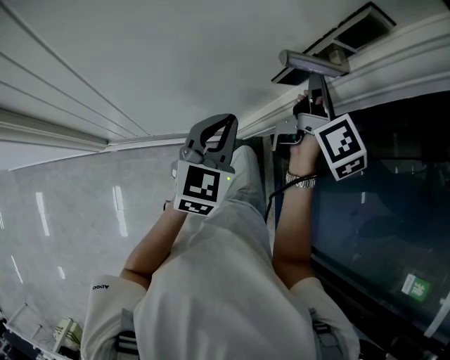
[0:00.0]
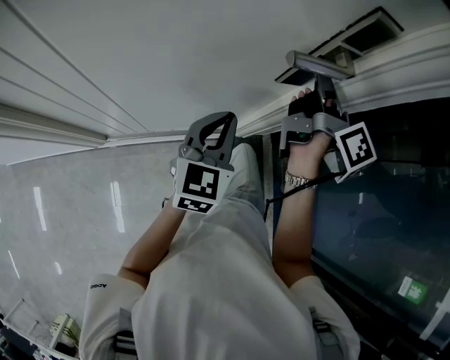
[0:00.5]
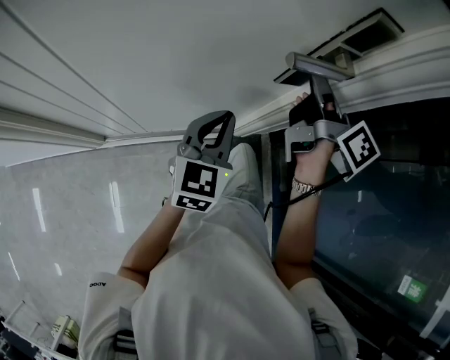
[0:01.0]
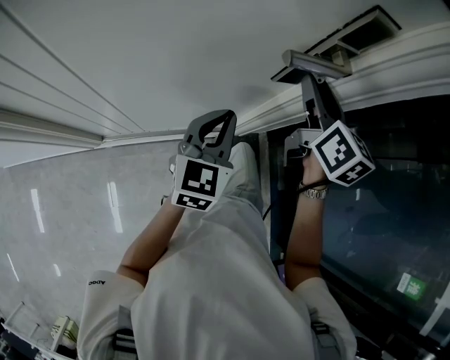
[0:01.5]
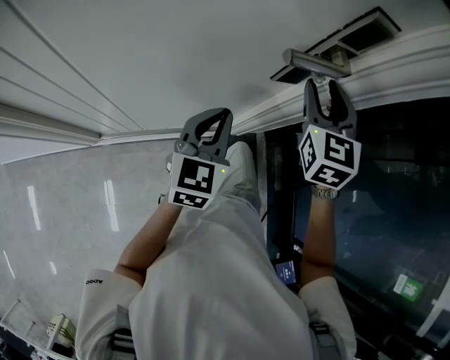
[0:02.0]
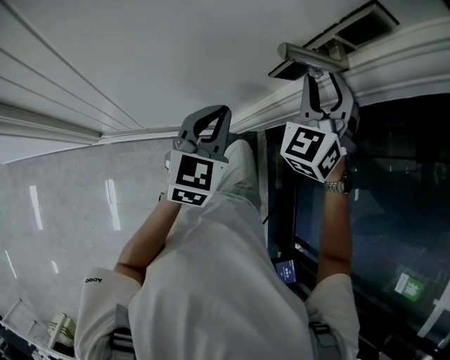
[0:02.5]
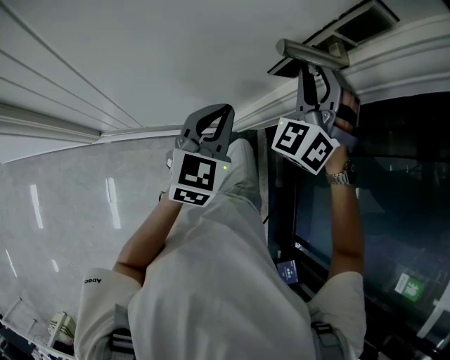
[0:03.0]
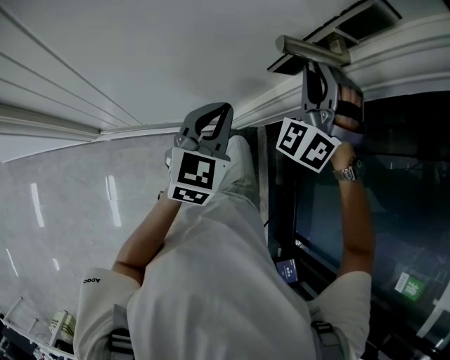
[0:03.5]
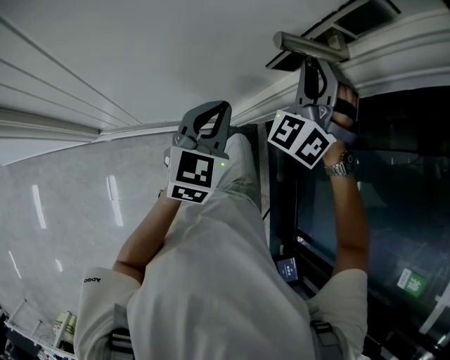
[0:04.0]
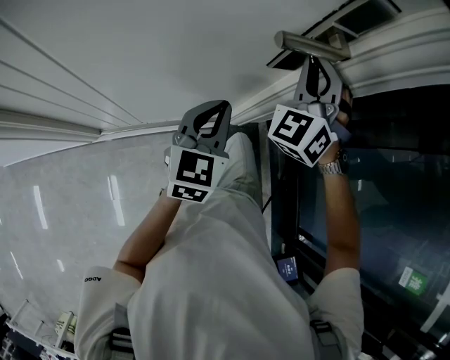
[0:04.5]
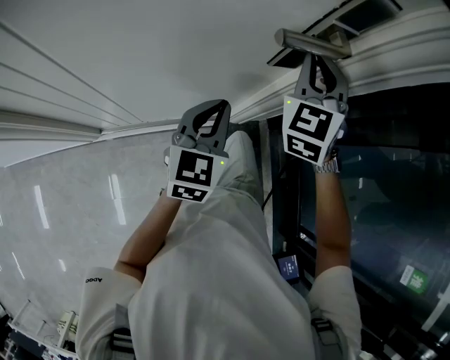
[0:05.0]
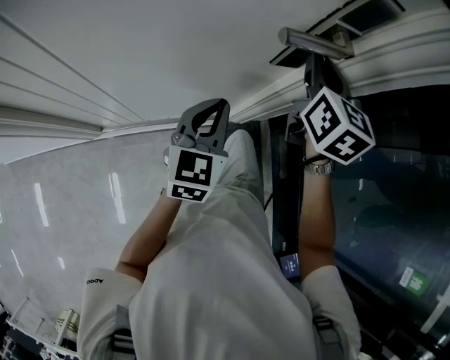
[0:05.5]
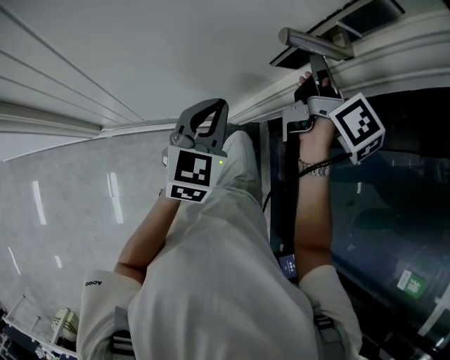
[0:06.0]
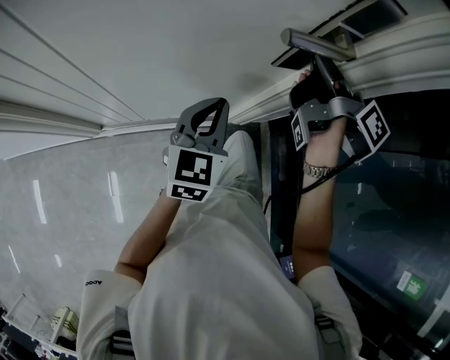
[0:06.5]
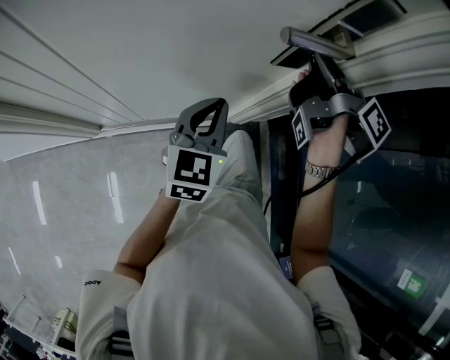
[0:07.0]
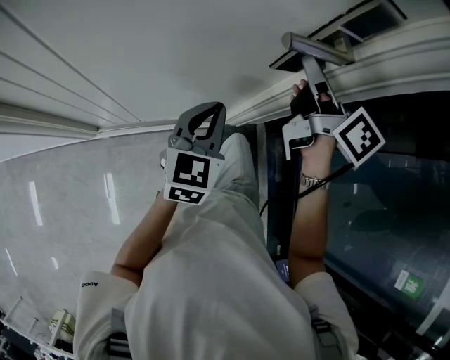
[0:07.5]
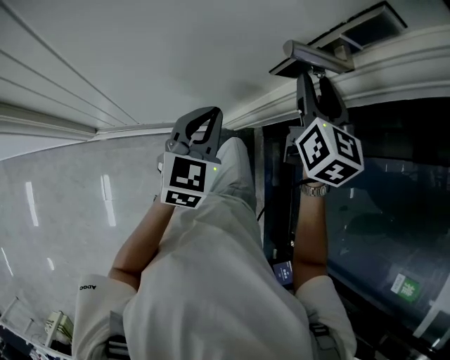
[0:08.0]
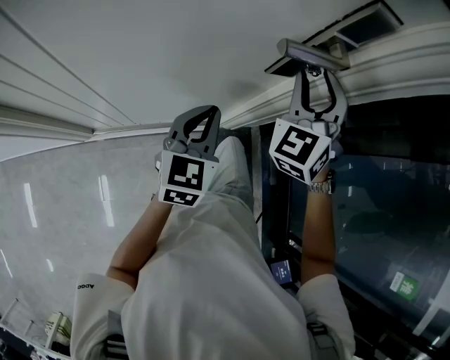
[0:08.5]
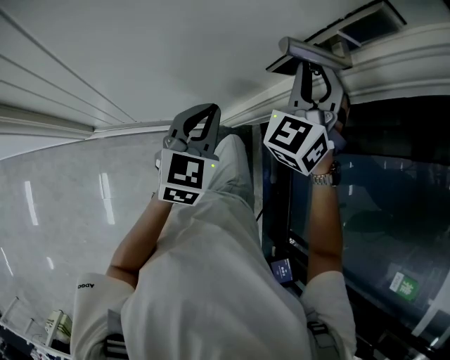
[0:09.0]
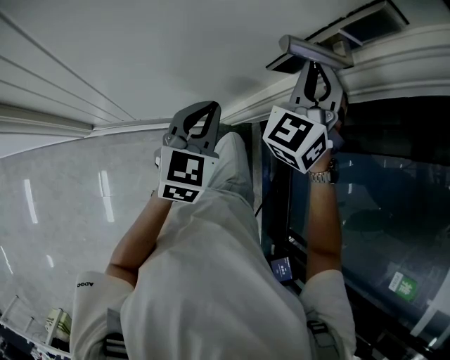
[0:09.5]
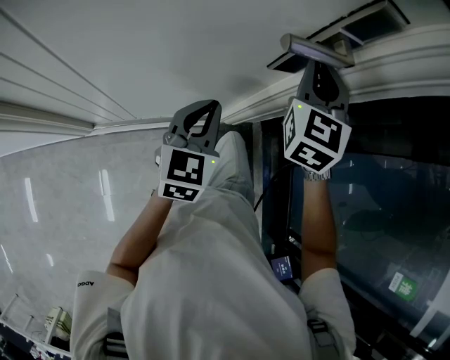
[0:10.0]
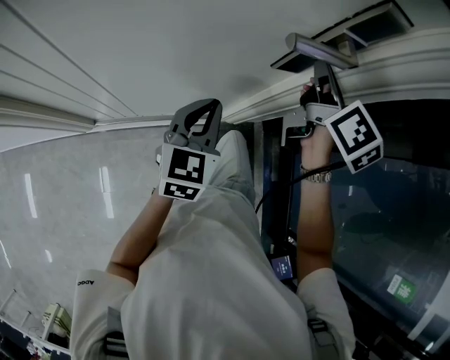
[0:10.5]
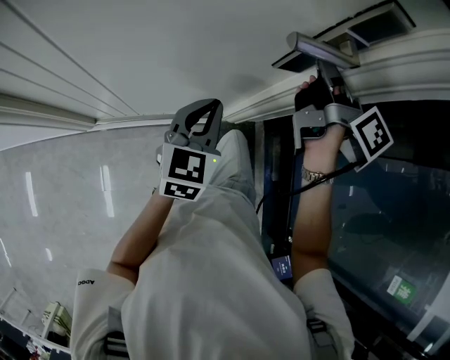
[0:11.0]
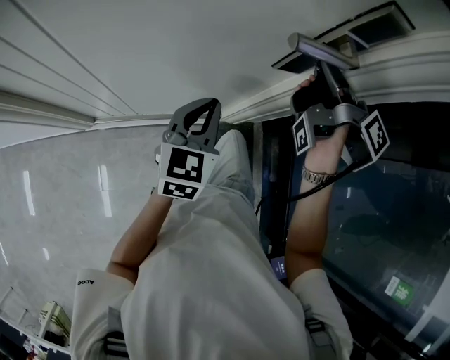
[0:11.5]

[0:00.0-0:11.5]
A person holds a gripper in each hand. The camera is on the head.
0:00.0 to 0:02.0: The right gripper twists some 60 degrees counterclockwise, seen from behind, and opens its fingers.
0:02.0 to 0:04.0: The right gripper rolls counterclockwise, seen from behind, by roughly 60 degrees.
0:04.0 to 0:06.0: The right gripper rotates around the line of its fingers by some 120 degrees, clockwise from behind.
0:06.0 to 0:07.5: The right gripper opens.
0:07.5 to 0:09.5: The right gripper rolls counterclockwise, seen from behind, by some 100 degrees, and closes its fingers.
0:09.5 to 0:11.5: The right gripper rotates around the line of its fingers by some 130 degrees, clockwise from behind.

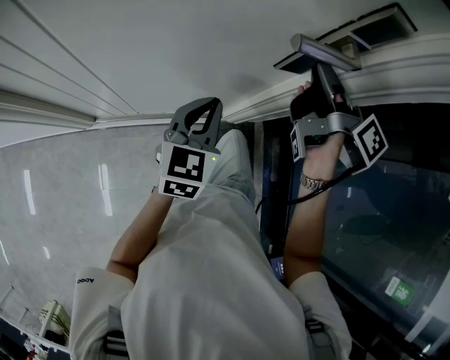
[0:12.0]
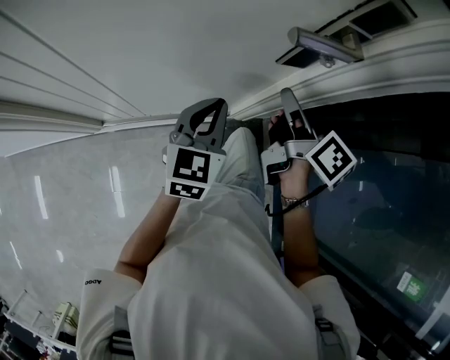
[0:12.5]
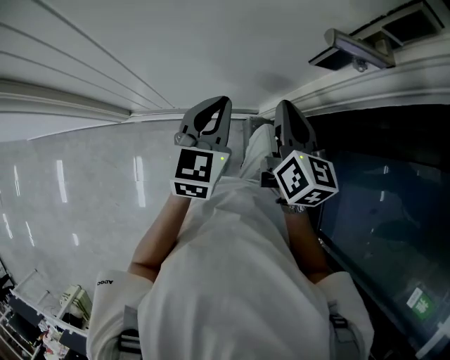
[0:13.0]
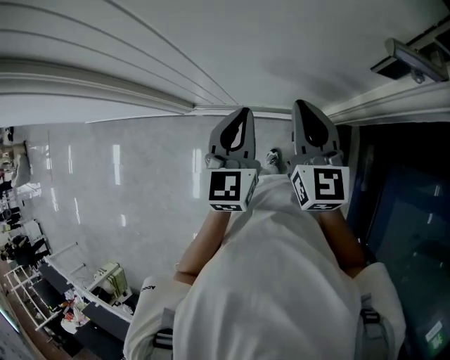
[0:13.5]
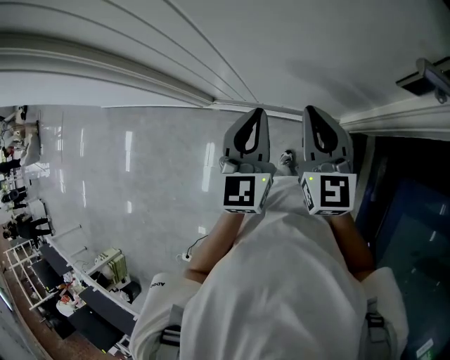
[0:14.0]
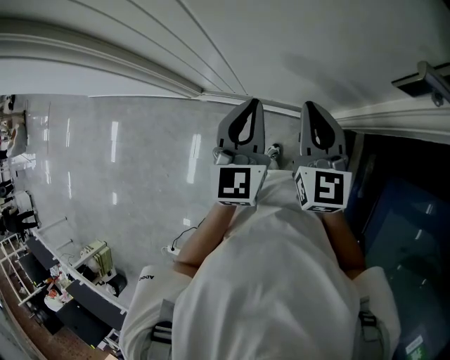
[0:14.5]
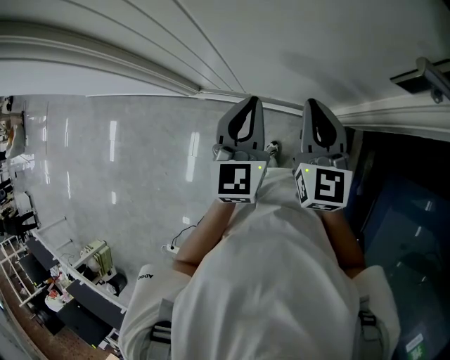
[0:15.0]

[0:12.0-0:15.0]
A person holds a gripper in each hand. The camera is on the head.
0:12.0 to 0:13.5: The left gripper is displaced to the left by some 15 cm, and changes its angle by about 20 degrees. The right gripper shifts about 25 cm to the left, backward and downward, and rolls counterclockwise, seen from behind, by some 60 degrees.
0:13.5 to 0:15.0: There are only small adjustments of the grippers.

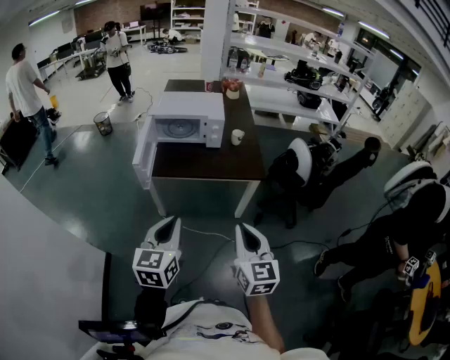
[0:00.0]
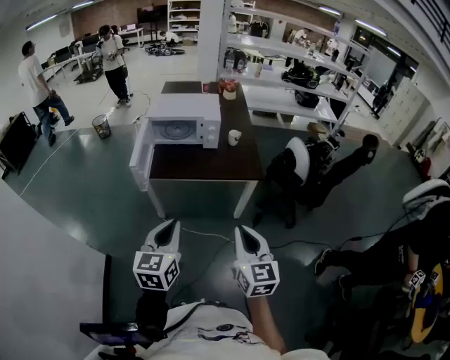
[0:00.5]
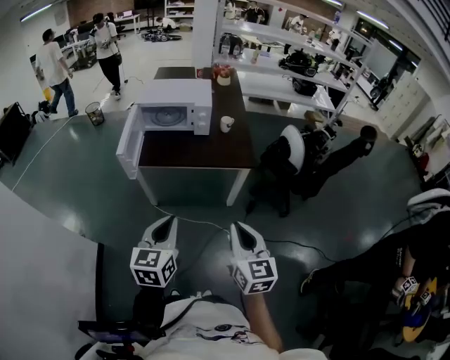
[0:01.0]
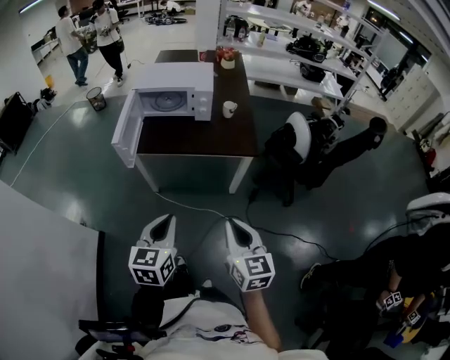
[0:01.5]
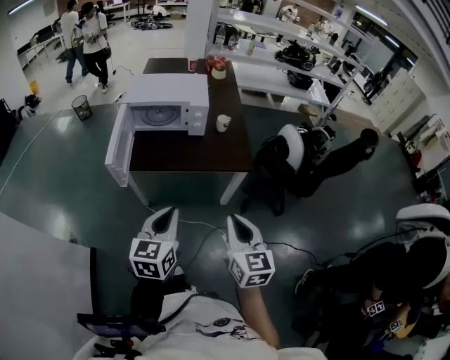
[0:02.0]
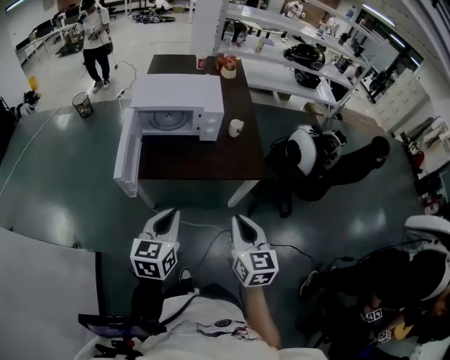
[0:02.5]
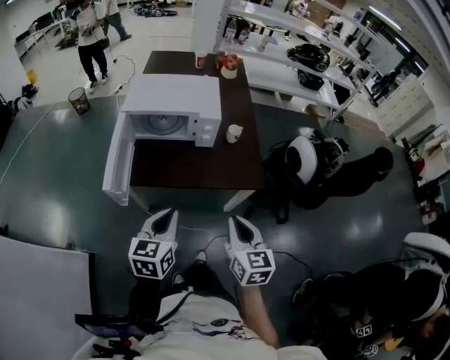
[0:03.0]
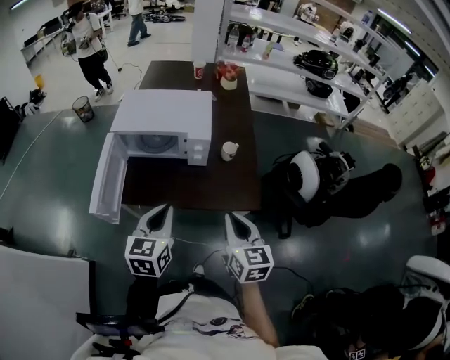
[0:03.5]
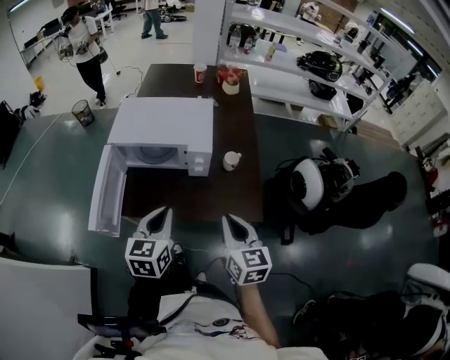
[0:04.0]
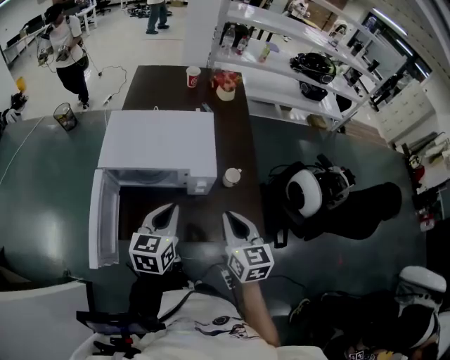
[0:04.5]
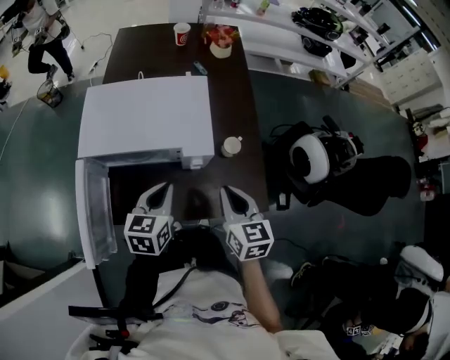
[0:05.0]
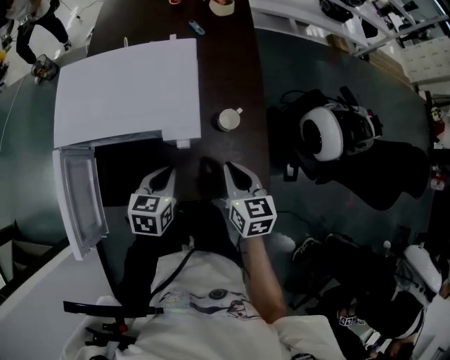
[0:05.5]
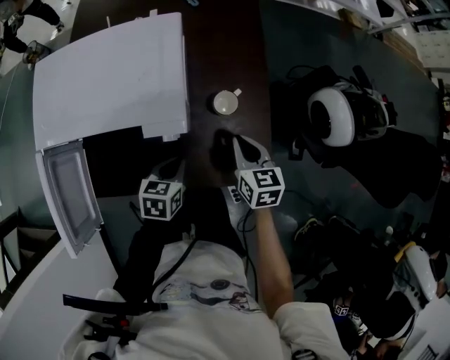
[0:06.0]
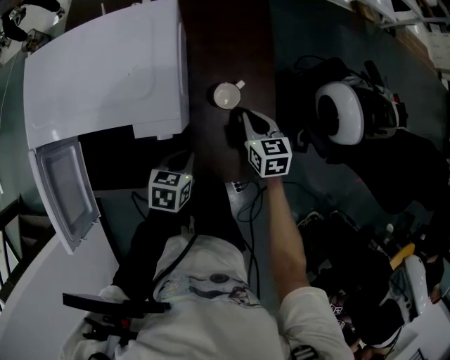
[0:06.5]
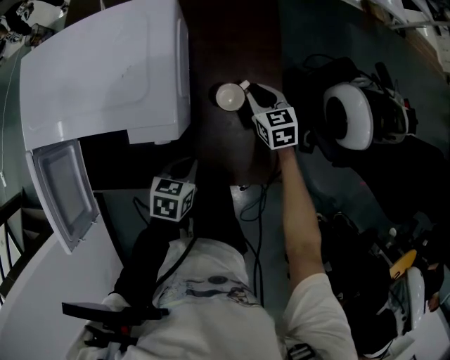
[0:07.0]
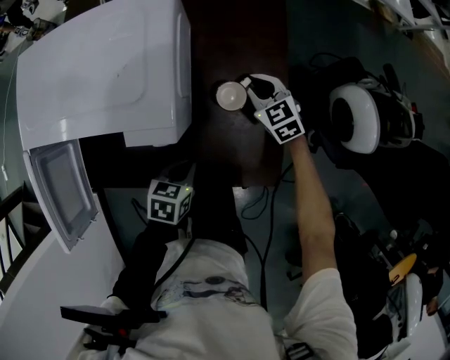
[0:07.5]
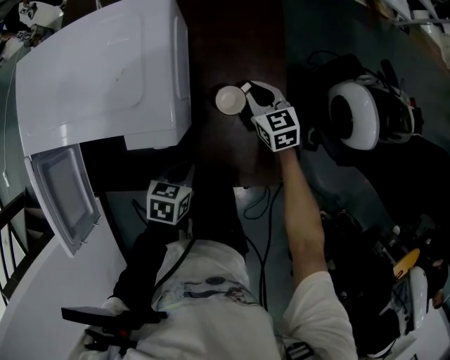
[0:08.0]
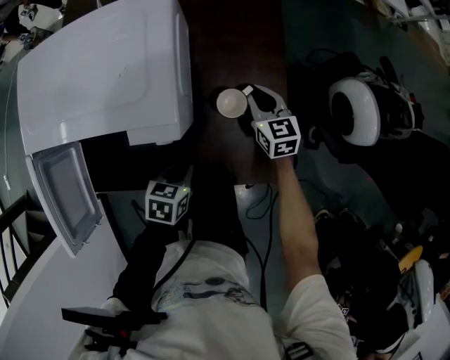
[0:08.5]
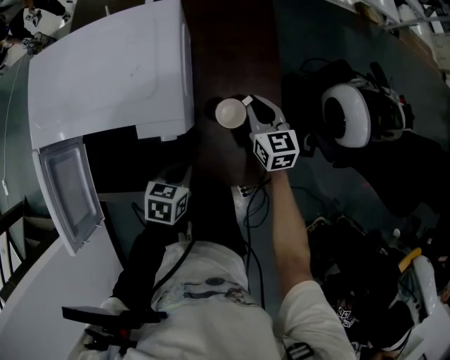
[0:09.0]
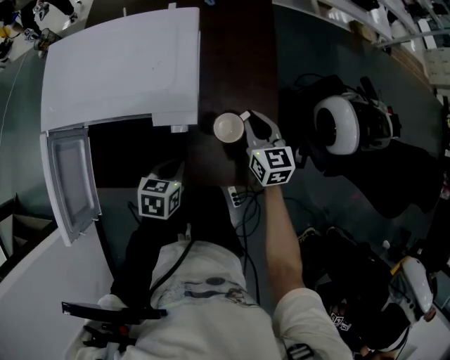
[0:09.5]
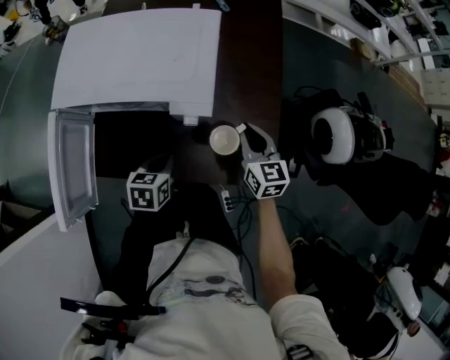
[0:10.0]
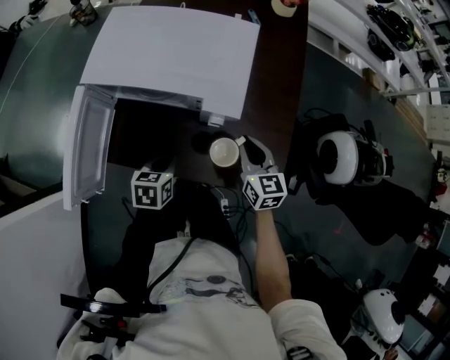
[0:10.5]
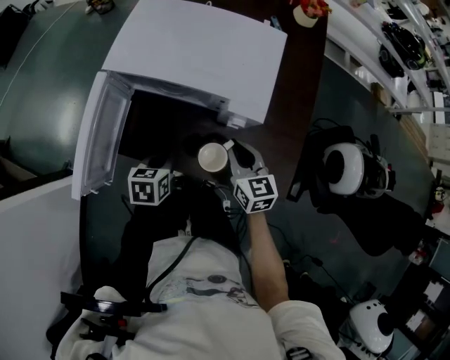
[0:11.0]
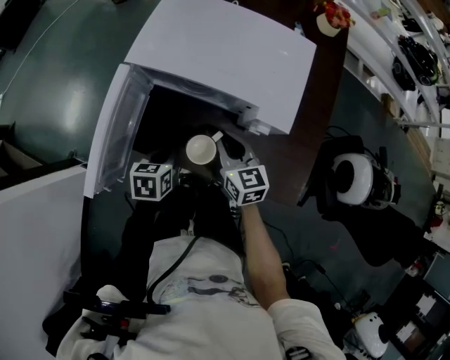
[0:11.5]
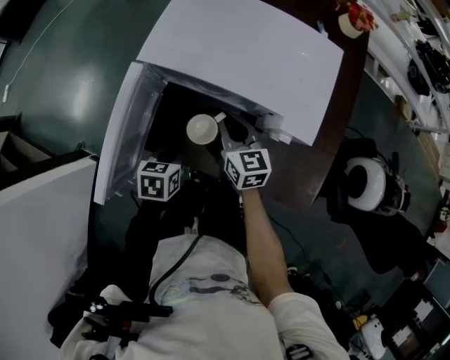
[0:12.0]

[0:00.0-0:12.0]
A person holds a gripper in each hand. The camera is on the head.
0:00.0 to 0:02.0: The two grippers go some 5 cm forward.
0:02.0 to 0:04.0: Both grippers move forward, roughly 25 cm.
0:04.0 to 0:06.0: The left gripper goes approximately 30 cm downward and forward, and turns by roughly 40 degrees. Meanwhile the right gripper goes some 30 cm forward and downward, and swivels approximately 20 degrees.
0:06.0 to 0:08.0: The right gripper travels forward and downward by some 15 cm. Meanwhile the left gripper moves approximately 5 cm.
0:08.0 to 0:10.0: The left gripper goes roughly 10 cm to the left and upward, while the right gripper heads upward and backward, covering some 15 cm.
0:10.0 to 0:12.0: The left gripper heads to the left, covering some 15 cm; the right gripper moves to the left, about 30 cm.
